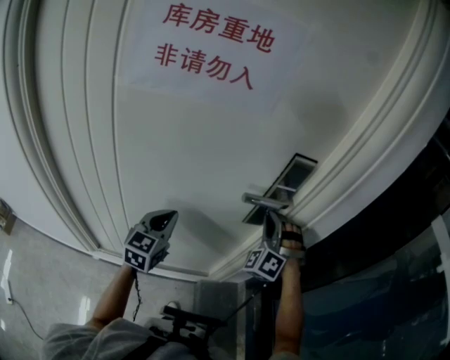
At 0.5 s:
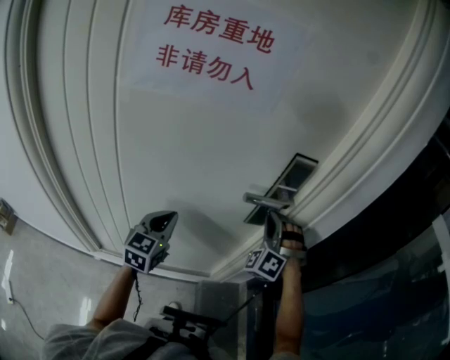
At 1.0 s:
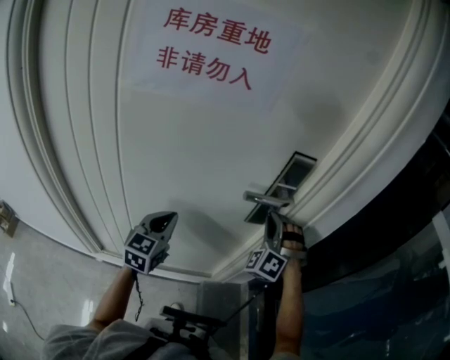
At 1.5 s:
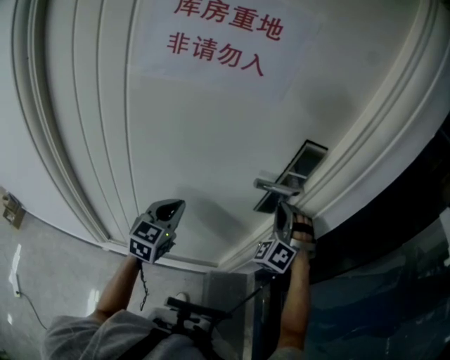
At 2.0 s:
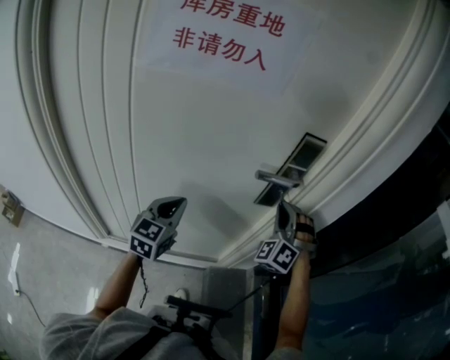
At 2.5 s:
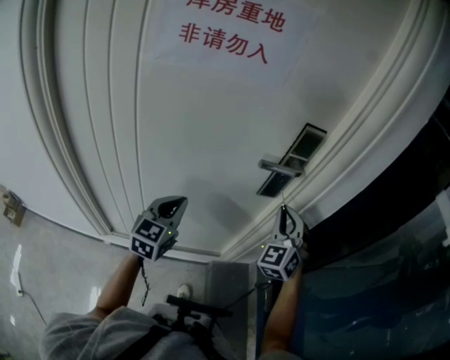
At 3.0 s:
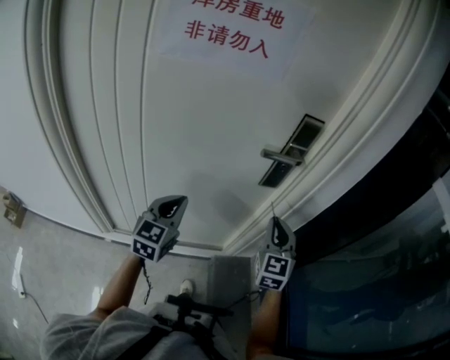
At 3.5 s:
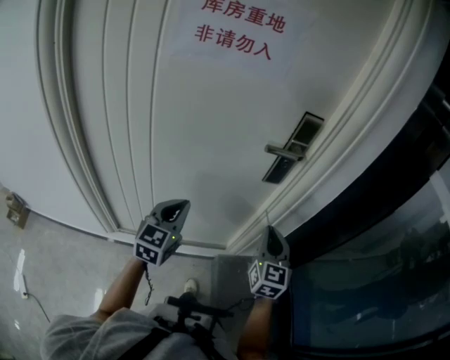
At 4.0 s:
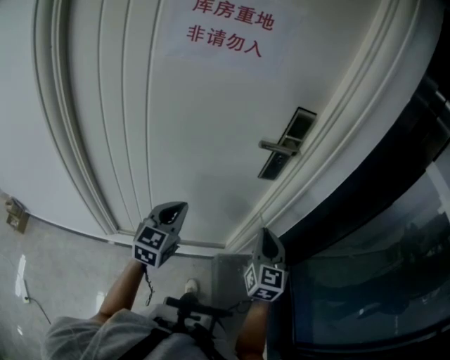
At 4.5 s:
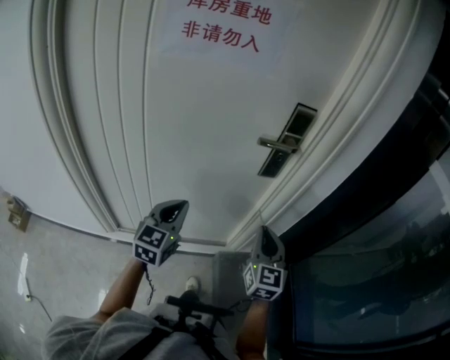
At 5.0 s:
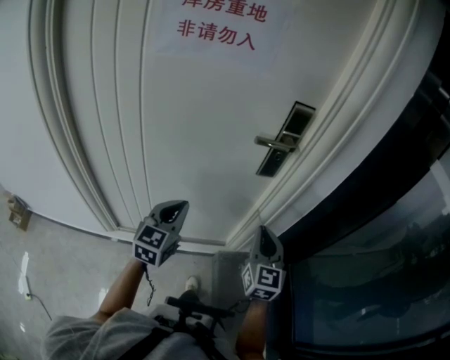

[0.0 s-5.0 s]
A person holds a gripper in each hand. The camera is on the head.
0.0 to 2.5 s: The two grippers go roughly 10 cm backward. The right gripper turns by about 40 degrees.
2.5 to 5.0 s: The right gripper travels backward and downward by approximately 15 cm, and rolls clockwise, seen from behind, by roughly 40 degrees; the left gripper moves backward, roughly 10 cm.

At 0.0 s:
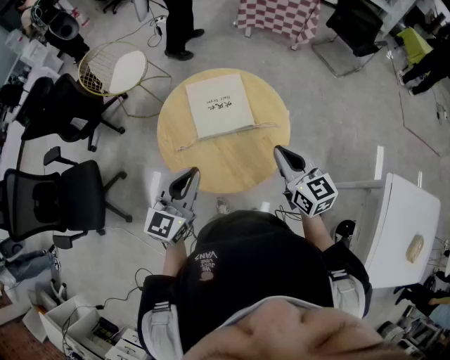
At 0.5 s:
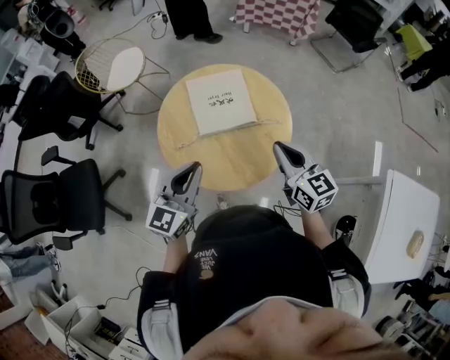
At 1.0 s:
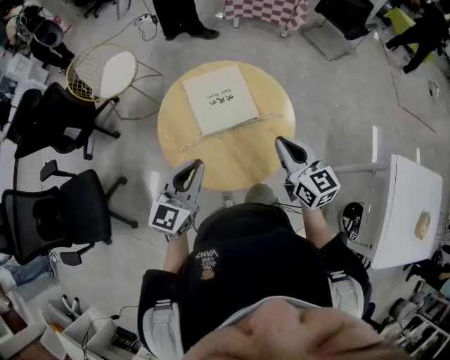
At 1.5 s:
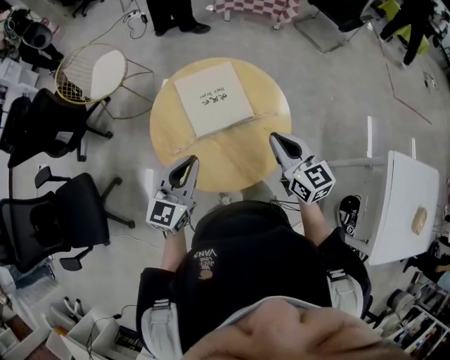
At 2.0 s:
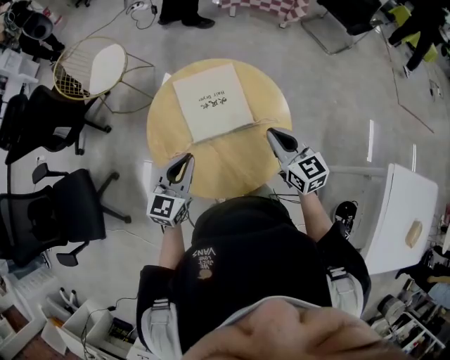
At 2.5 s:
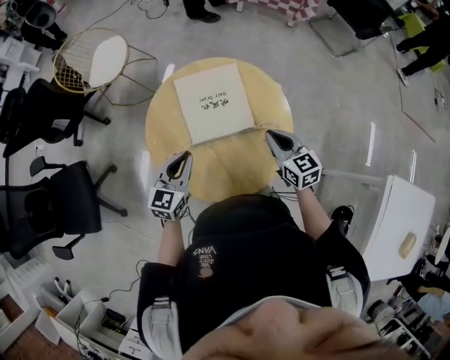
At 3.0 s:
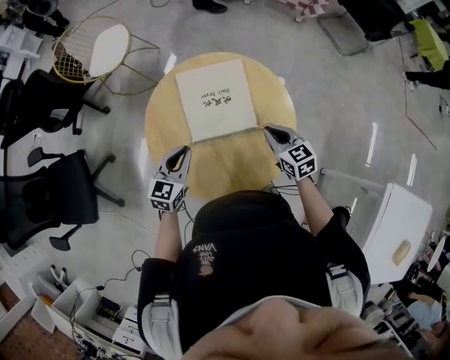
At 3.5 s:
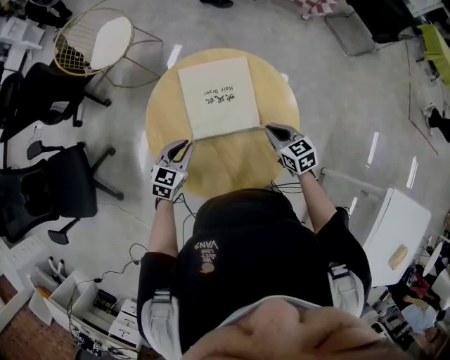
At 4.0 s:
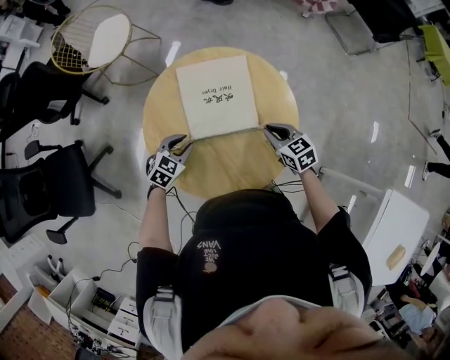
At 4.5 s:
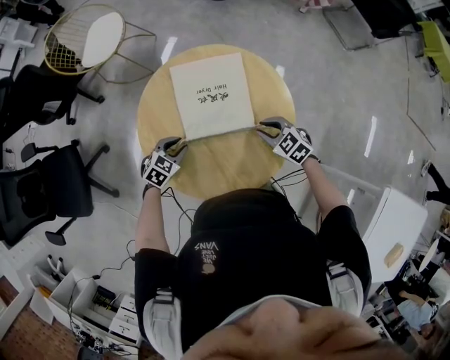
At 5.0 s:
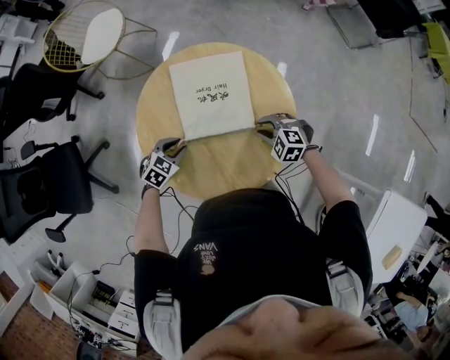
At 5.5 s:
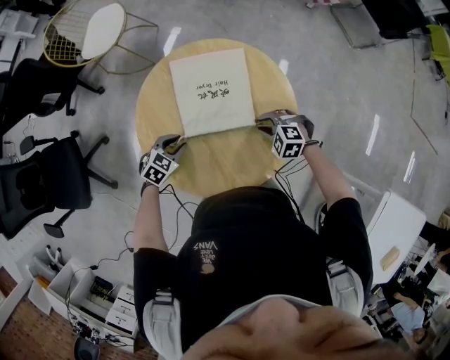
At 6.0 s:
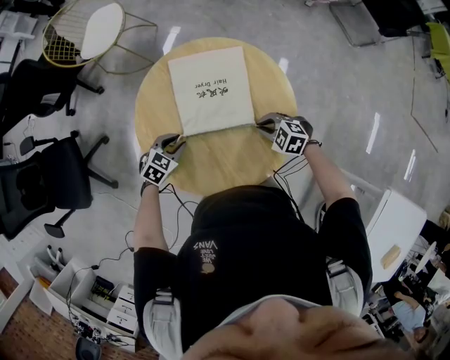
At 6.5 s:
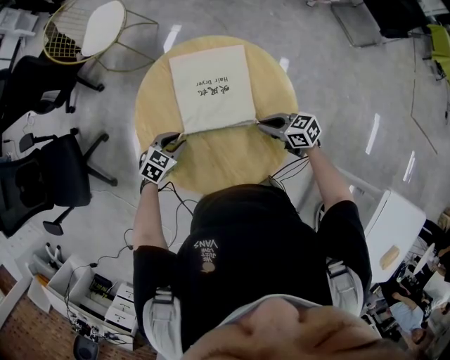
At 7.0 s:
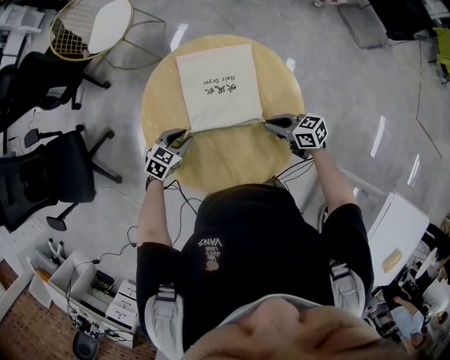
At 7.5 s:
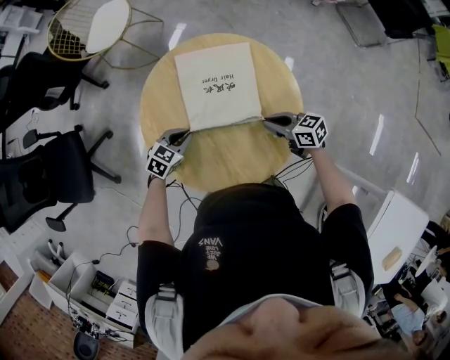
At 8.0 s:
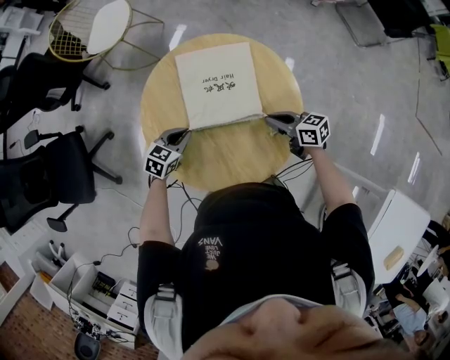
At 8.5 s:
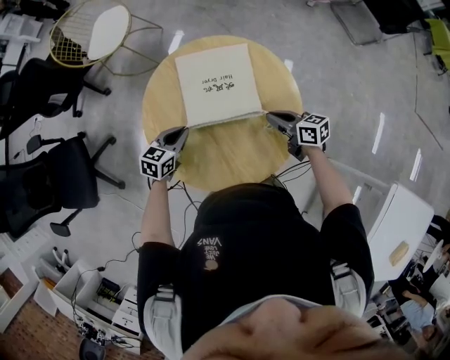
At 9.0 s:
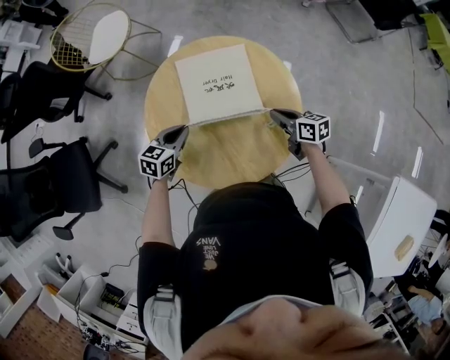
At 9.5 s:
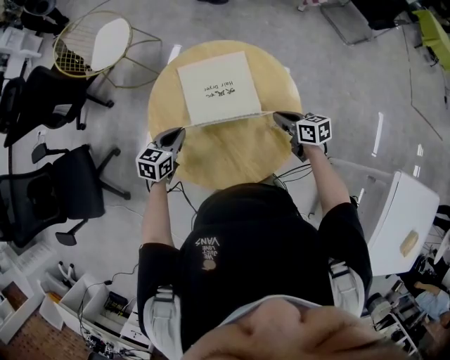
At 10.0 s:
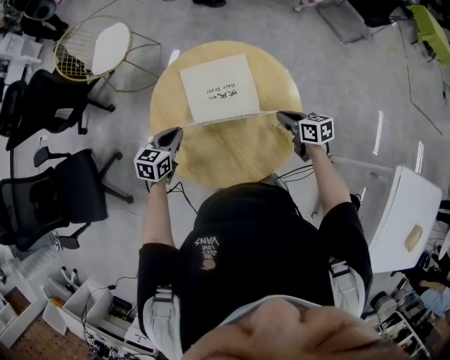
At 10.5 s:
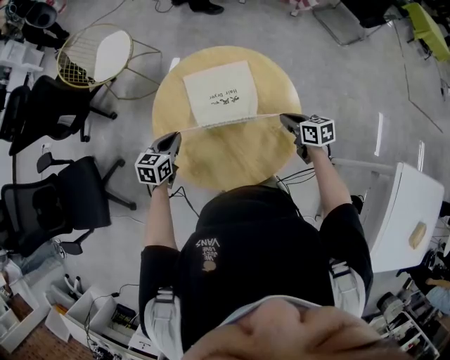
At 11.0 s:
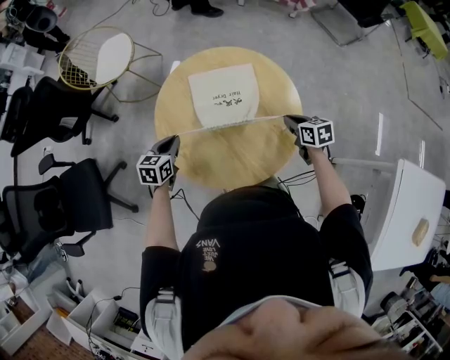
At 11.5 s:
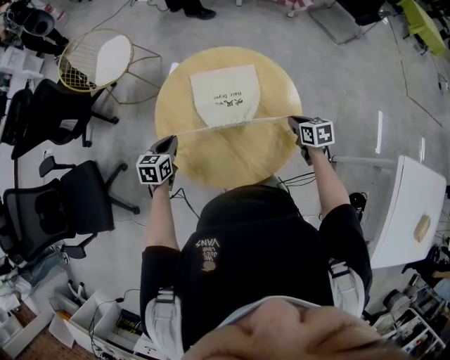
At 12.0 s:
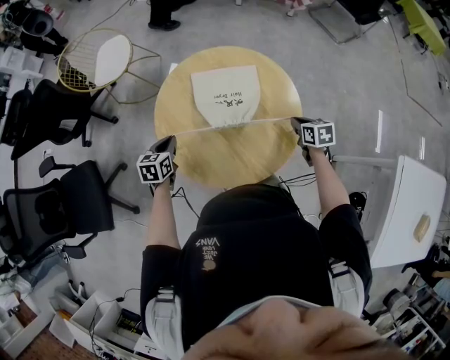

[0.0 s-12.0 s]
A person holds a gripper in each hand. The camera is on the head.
0.0 to 2.0 s: Both grippers travel together forward and downward, some 15 cm.
2.0 to 4.0 s: The right gripper goes roughly 20 cm downward and forward, and swivels some 30 degrees. The left gripper moves downward, approximately 20 cm, points its fingers some 30 degrees further downward, and opens.
4.0 to 6.0 s: The right gripper travels downward by approximately 5 cm, and changes its angle by approximately 50 degrees.
6.0 to 8.0 s: The right gripper ends up roughly 5 cm from where it was, and rolls clockwise, seen from behind, by roughly 50 degrees; the left gripper closes.
8.0 to 10.0 s: The right gripper swivels some 20 degrees, while the left gripper moves upward and to the left, about 10 cm.
10.0 to 12.0 s: The right gripper moves to the right, approximately 5 cm, and turns by approximately 20 degrees, while the left gripper shifts about 5 cm to the left.

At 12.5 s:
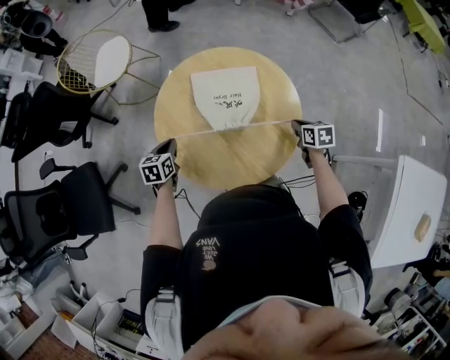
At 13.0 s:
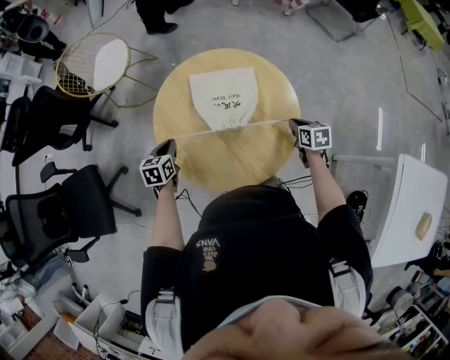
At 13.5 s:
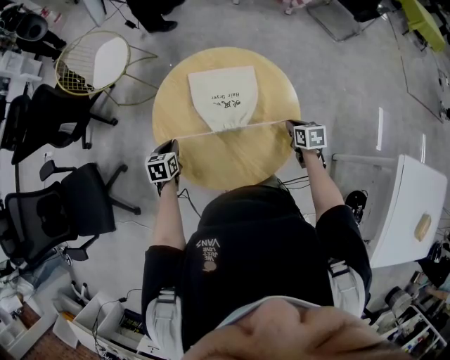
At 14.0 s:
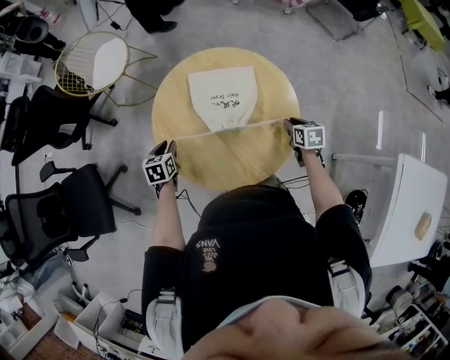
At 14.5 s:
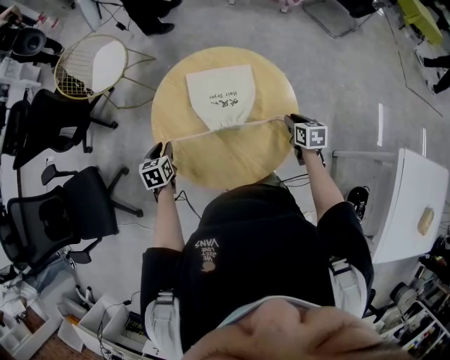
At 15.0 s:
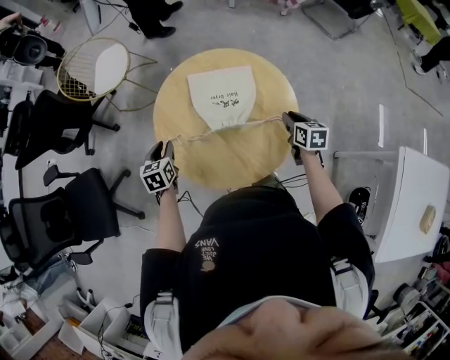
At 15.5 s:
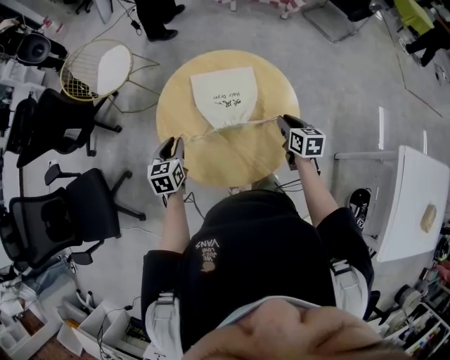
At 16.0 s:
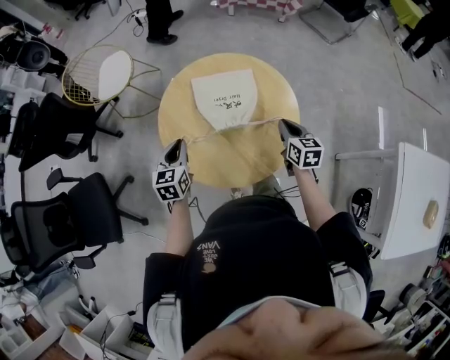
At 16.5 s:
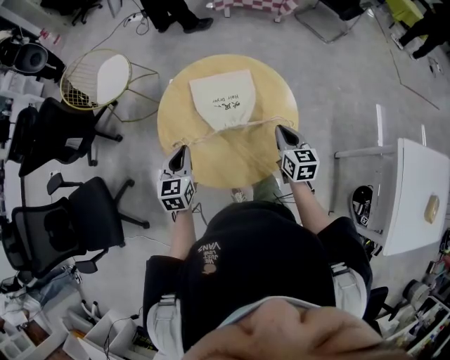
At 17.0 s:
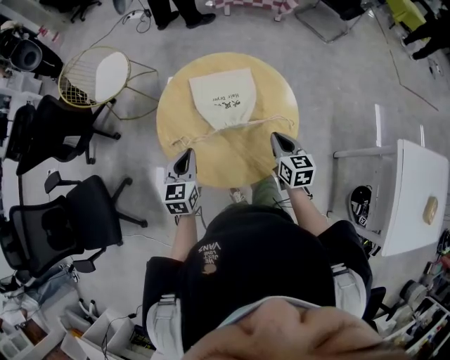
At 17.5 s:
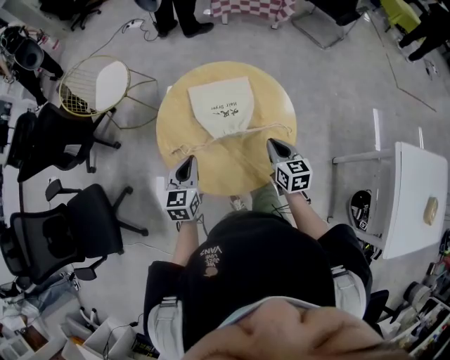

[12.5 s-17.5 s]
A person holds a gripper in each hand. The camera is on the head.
12.5 to 15.0 s: The left gripper opens.
15.0 to 17.5 s: The left gripper travels to the right, upward and backward by approximately 15 cm, changes its angle by roughly 20 degrees, and closes its fingers; the right gripper shifts approximately 15 cm to the left, backward and upward, and closes its fingers.

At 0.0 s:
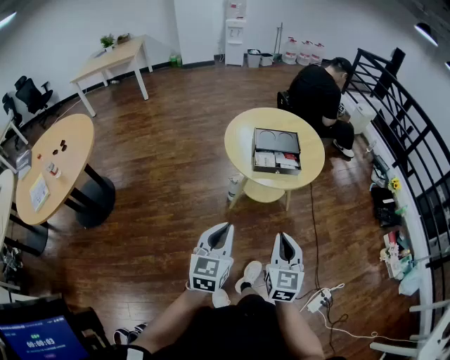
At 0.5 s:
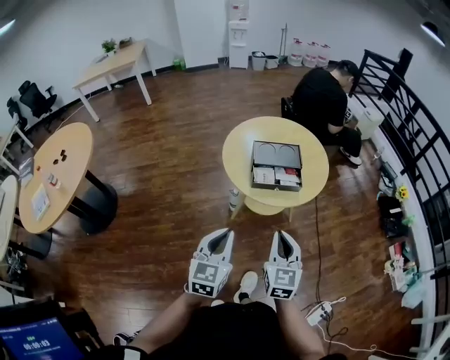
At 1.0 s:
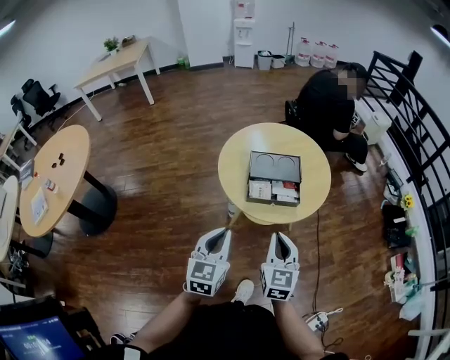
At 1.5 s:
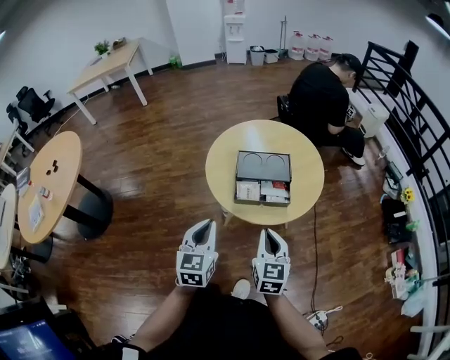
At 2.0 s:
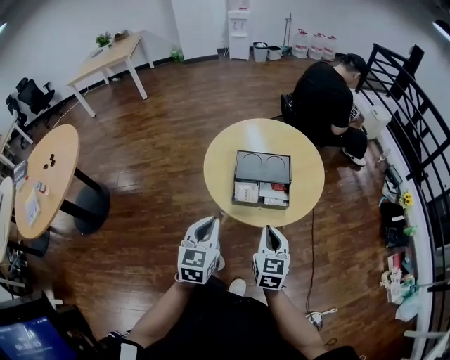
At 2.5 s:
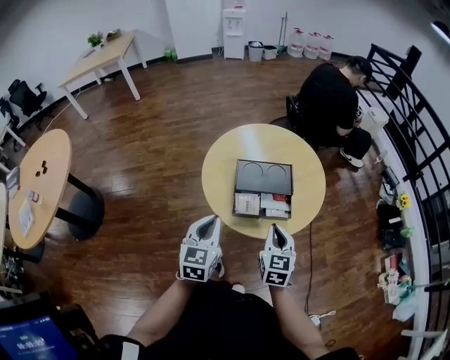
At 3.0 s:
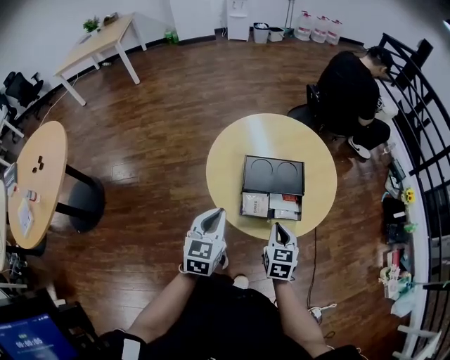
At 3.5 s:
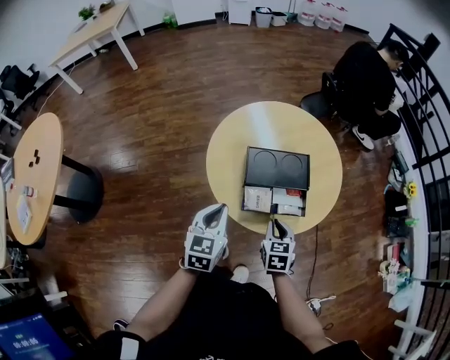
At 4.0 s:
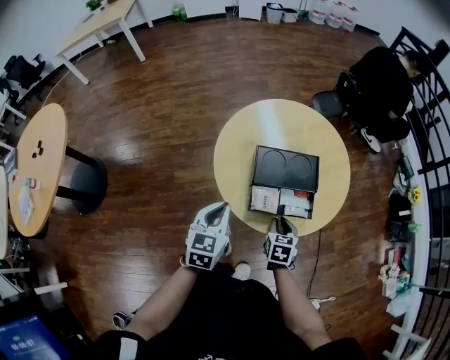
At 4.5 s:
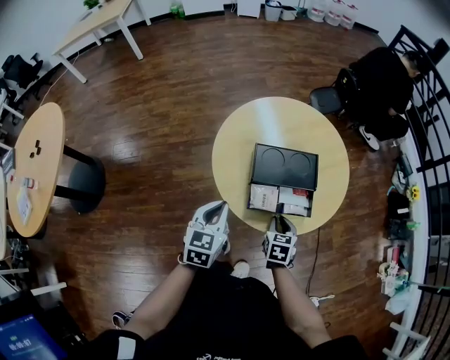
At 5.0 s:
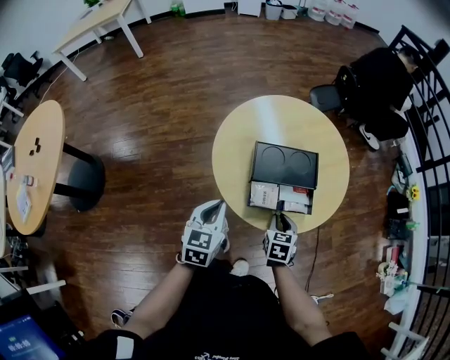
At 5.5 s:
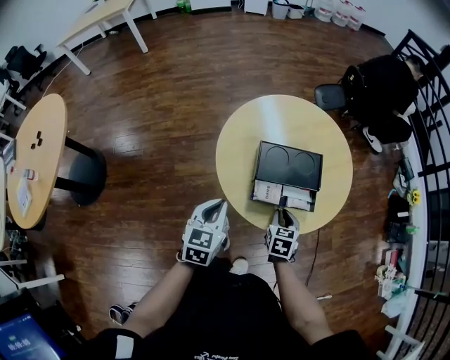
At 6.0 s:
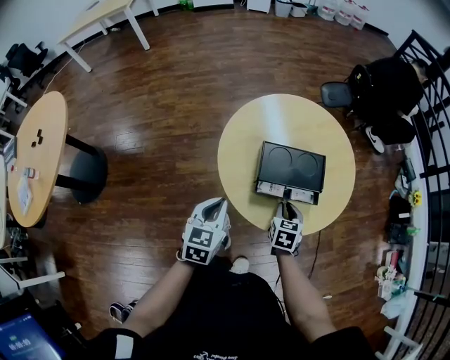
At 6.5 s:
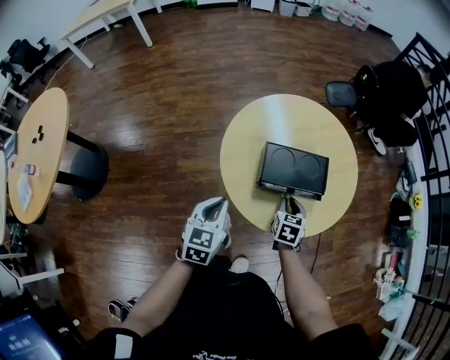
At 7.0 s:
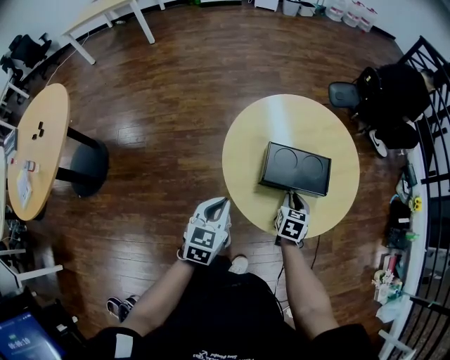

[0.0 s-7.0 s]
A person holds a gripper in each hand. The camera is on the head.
0.0 to 2.0 s: The two grippers go some 25 cm forward.
2.0 to 3.5 s: The left gripper shifts some 15 cm forward and downward; the right gripper shifts roughly 15 cm downward and forward, and swivels about 20 degrees.
3.5 to 5.0 s: The grippers stay close to where they were, moving slightly.
5.0 to 7.0 s: The right gripper goes about 10 cm forward.
